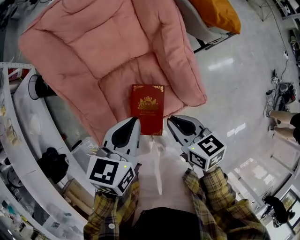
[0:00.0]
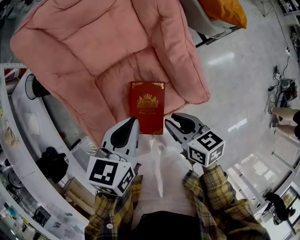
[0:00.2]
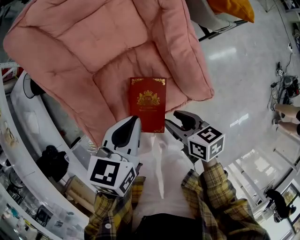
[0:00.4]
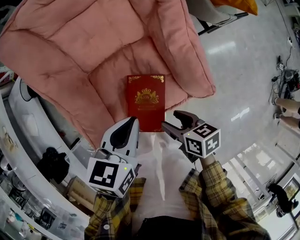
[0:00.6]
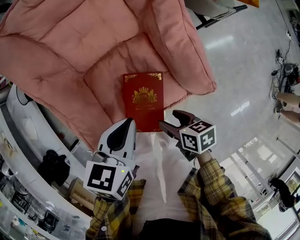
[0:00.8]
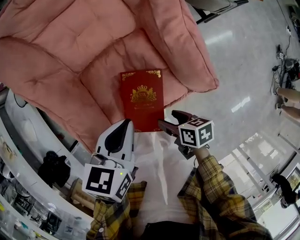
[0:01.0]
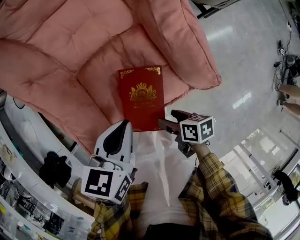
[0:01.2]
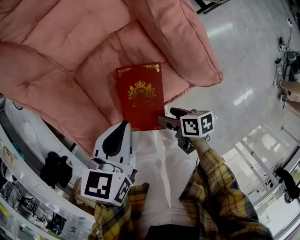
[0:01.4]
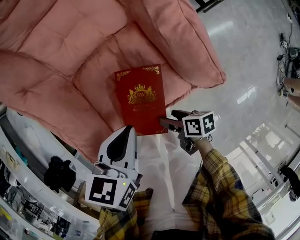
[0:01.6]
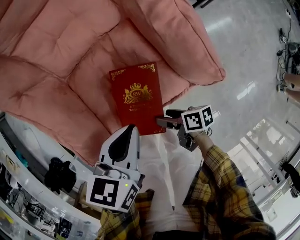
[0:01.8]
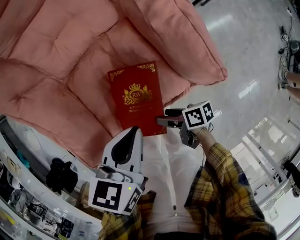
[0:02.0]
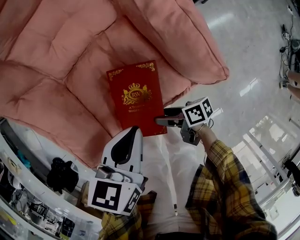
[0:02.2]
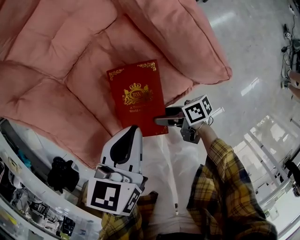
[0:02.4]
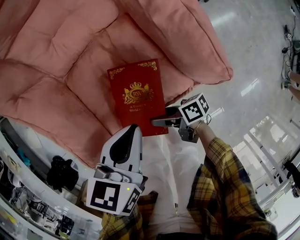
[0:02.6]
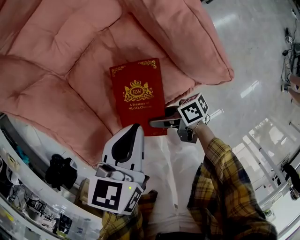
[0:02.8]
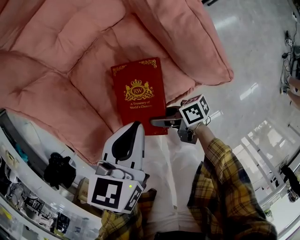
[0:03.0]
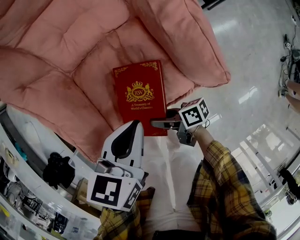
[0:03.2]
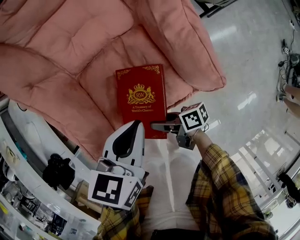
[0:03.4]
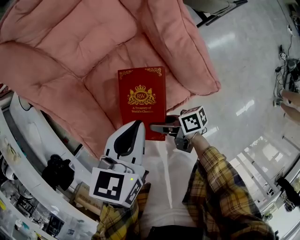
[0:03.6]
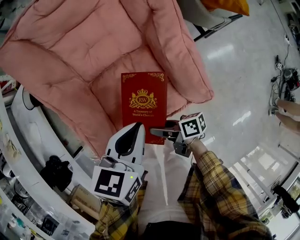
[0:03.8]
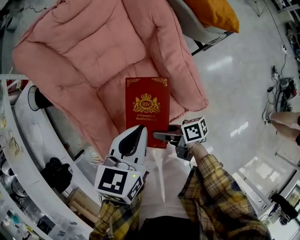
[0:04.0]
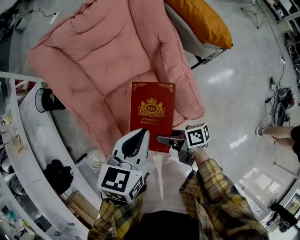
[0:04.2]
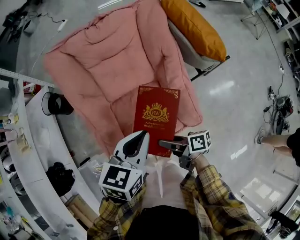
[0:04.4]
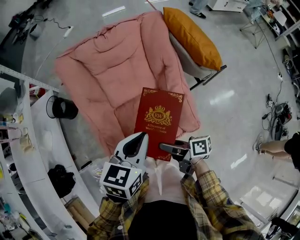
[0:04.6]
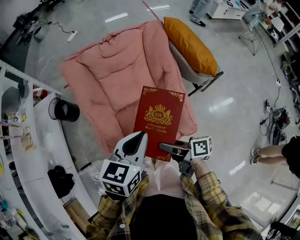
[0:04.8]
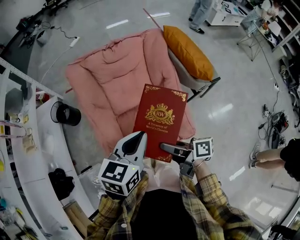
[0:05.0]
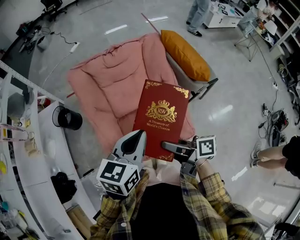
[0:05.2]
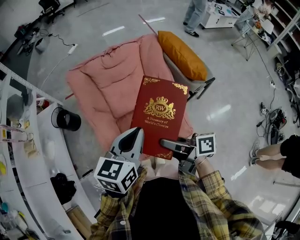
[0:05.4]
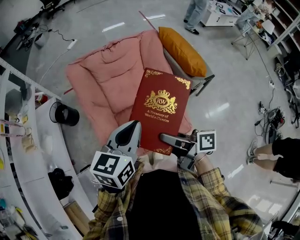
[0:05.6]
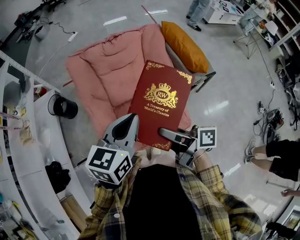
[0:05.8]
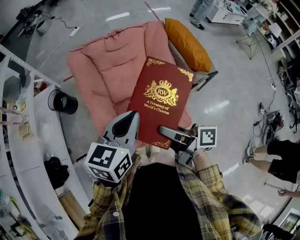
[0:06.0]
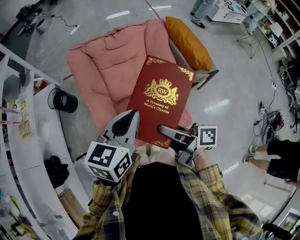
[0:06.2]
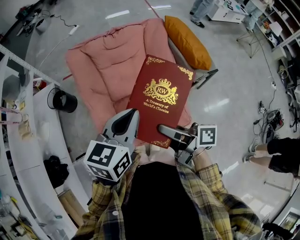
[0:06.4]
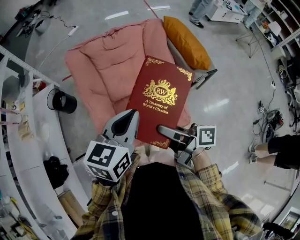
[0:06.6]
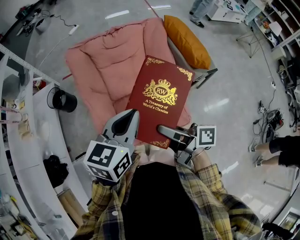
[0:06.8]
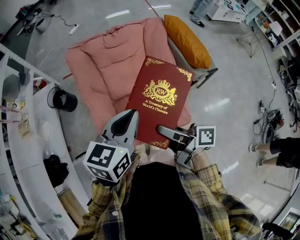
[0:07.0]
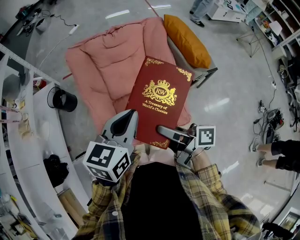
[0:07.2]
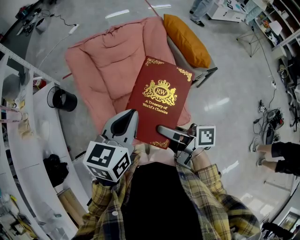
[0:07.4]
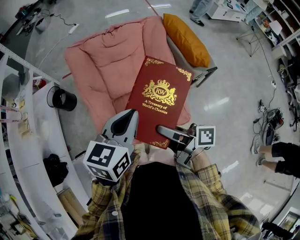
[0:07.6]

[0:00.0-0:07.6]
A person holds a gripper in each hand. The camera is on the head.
0:00.0 to 0:01.6: The left gripper heads downward, covering roughly 15 cm; the right gripper is displaced downward by roughly 30 cm, twists approximately 40 degrees clockwise, seen from behind, and opens up.
0:01.6 to 0:03.0: The right gripper swivels roughly 30 degrees.
0:03.0 to 0:04.6: The two grippers go roughly 30 cm upward.
0:04.6 to 0:06.0: The left gripper goes some 10 cm upward. The right gripper travels upward by approximately 20 cm.
0:06.0 to 0:07.6: Neither gripper changes place.

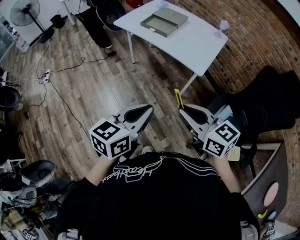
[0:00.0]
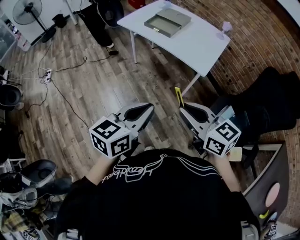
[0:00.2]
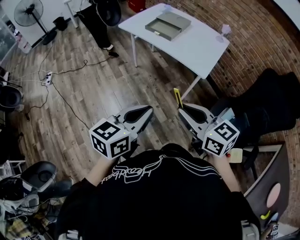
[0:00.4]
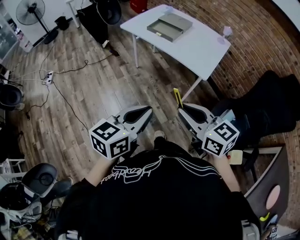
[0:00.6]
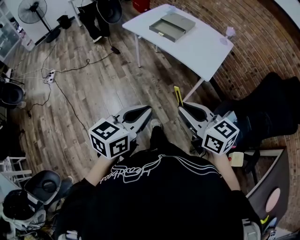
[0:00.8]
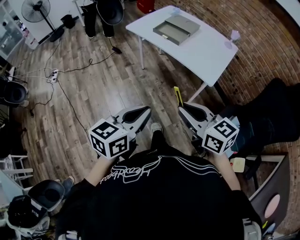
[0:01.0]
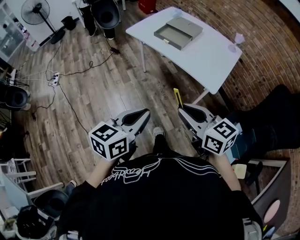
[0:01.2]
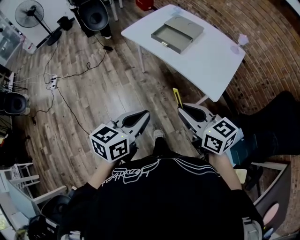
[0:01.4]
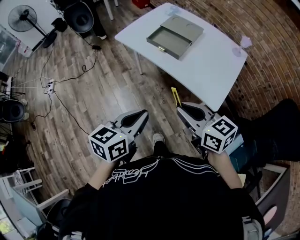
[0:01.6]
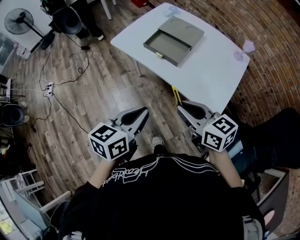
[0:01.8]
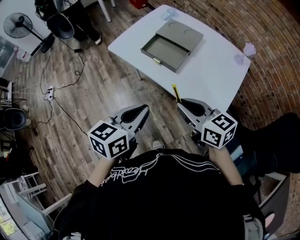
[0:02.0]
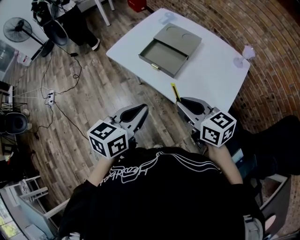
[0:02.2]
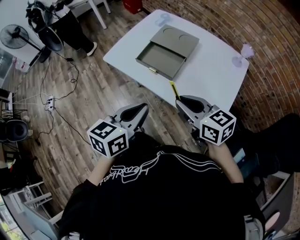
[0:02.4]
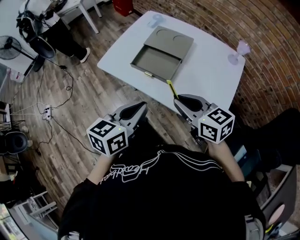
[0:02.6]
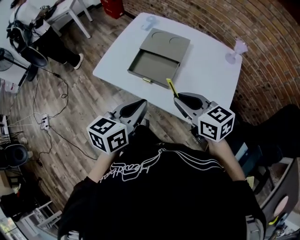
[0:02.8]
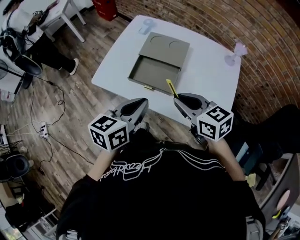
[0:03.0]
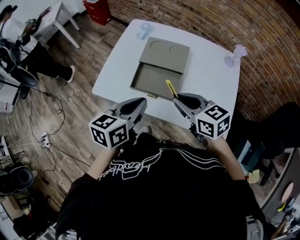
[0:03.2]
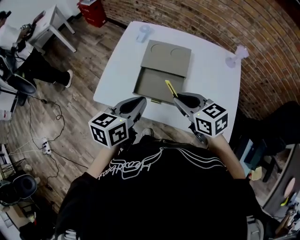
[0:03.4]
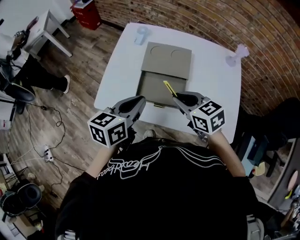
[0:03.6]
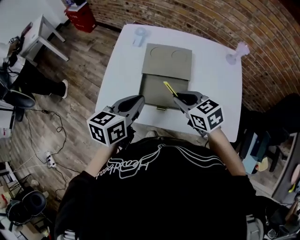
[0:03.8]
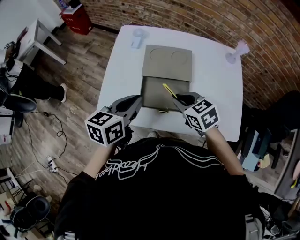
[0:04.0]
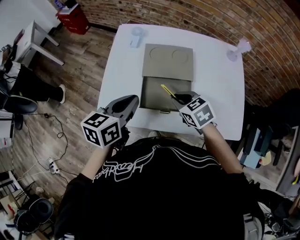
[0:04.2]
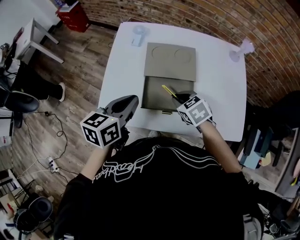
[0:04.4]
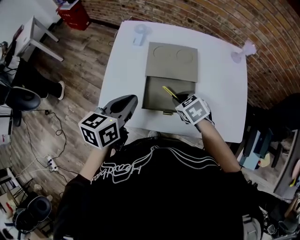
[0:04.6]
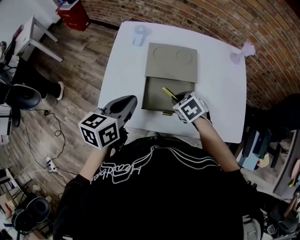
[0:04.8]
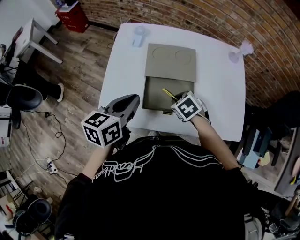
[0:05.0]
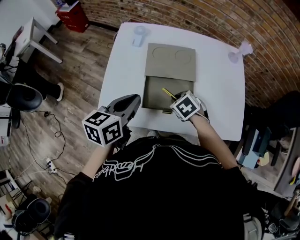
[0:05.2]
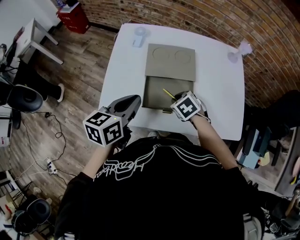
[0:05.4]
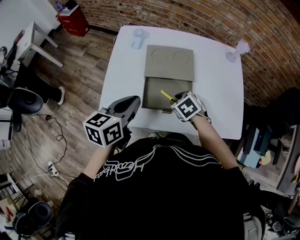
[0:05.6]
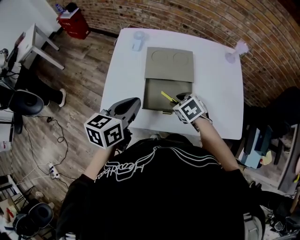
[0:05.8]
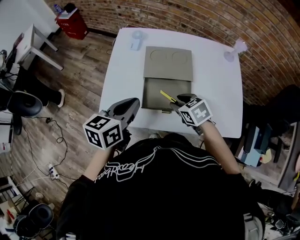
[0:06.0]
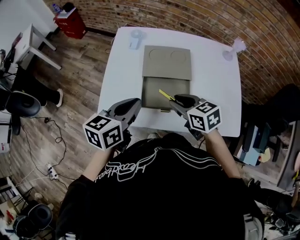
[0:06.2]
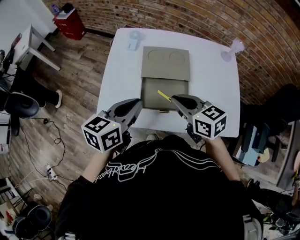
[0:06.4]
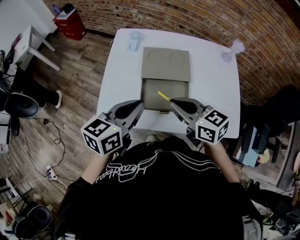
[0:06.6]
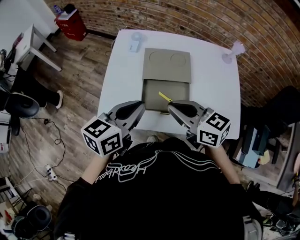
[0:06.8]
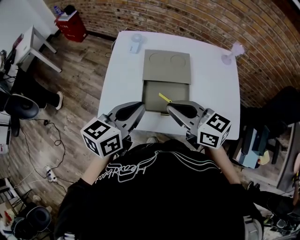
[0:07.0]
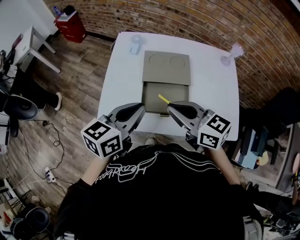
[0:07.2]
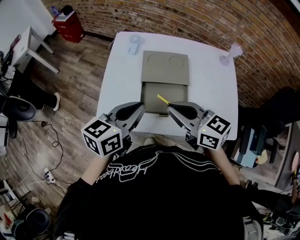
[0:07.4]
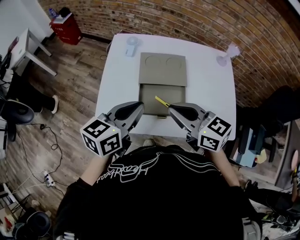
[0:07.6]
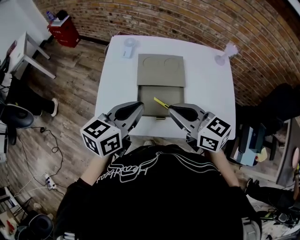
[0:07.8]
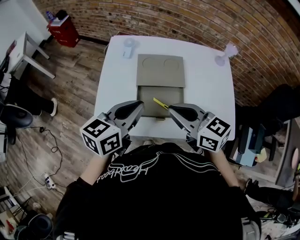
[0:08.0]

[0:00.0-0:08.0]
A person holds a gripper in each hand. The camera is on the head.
0:00.0 to 0:01.6: Both grippers travel together forward, roughly 25 cm.
0:01.6 to 0:03.2: The two grippers go approximately 30 cm forward.
0:03.2 to 0:04.8: The left gripper heads forward and to the left, covering some 15 cm. Meanwhile the right gripper heads downward and forward, covering about 20 cm, and points its fingers approximately 40 degrees further downward.
0:04.8 to 0:06.4: The right gripper travels upward by approximately 15 cm, tips its fingers upward by roughly 40 degrees, and opens and closes again. Meanwhile the left gripper shifts by about 5 cm.
0:06.4 to 0:08.0: The right gripper heads upward, covering about 5 cm.

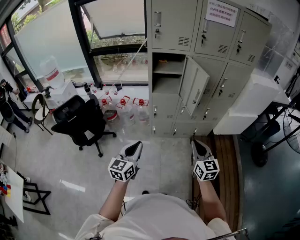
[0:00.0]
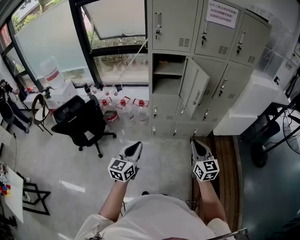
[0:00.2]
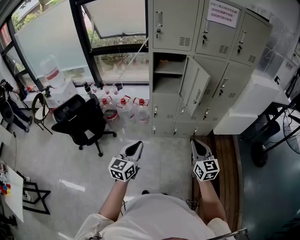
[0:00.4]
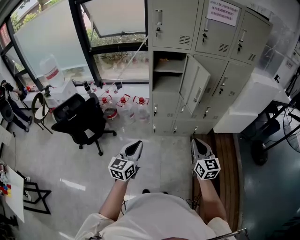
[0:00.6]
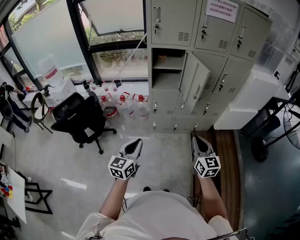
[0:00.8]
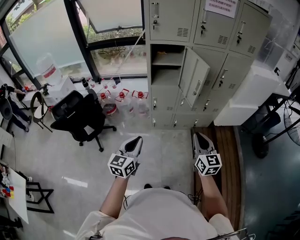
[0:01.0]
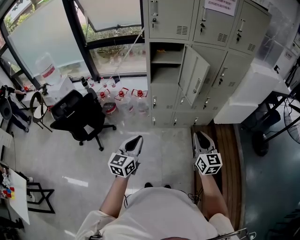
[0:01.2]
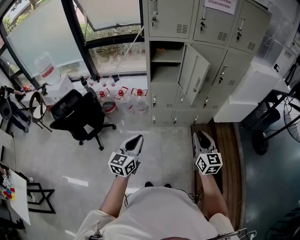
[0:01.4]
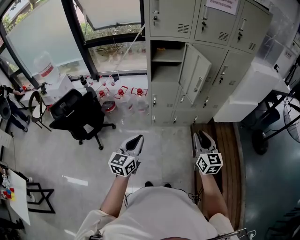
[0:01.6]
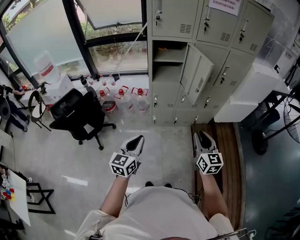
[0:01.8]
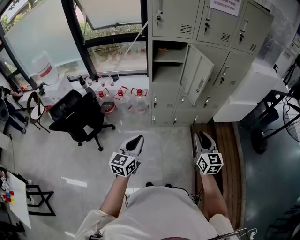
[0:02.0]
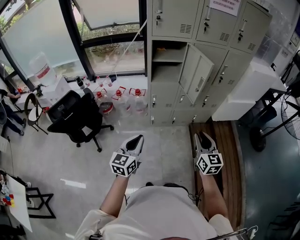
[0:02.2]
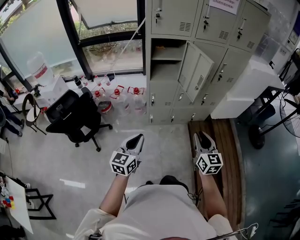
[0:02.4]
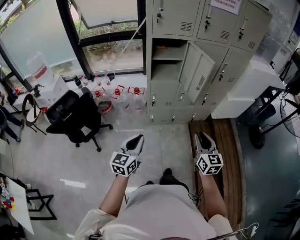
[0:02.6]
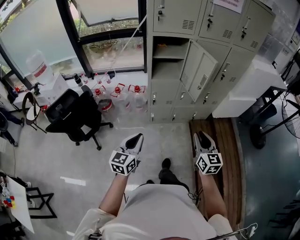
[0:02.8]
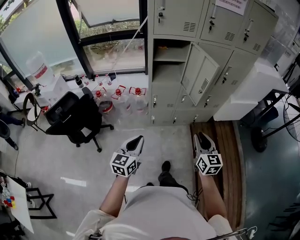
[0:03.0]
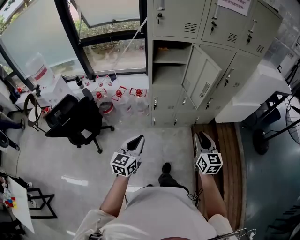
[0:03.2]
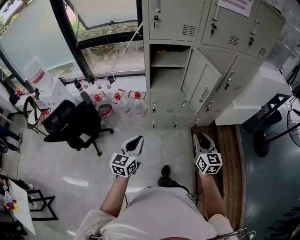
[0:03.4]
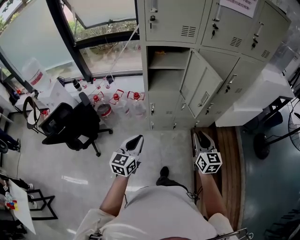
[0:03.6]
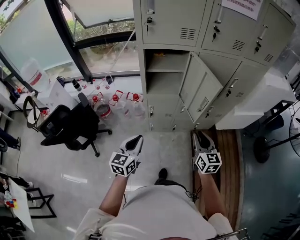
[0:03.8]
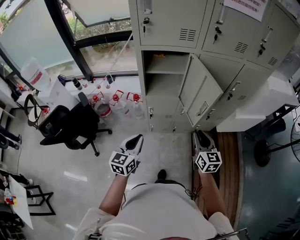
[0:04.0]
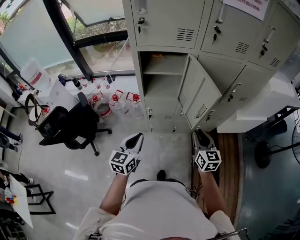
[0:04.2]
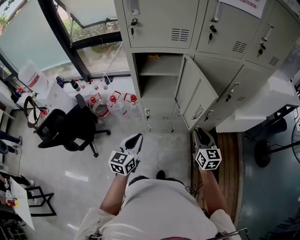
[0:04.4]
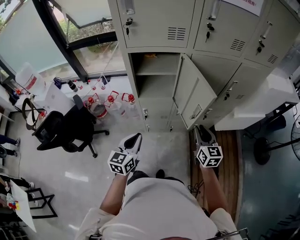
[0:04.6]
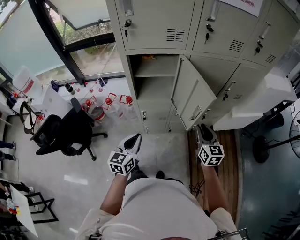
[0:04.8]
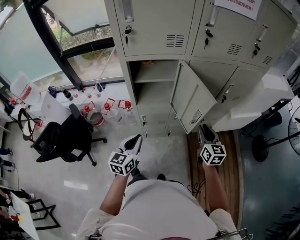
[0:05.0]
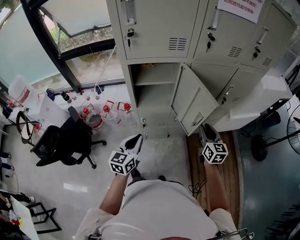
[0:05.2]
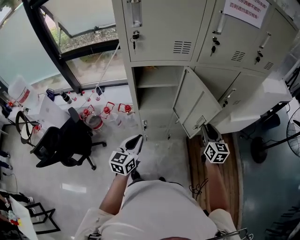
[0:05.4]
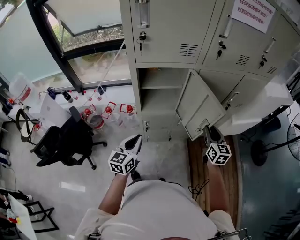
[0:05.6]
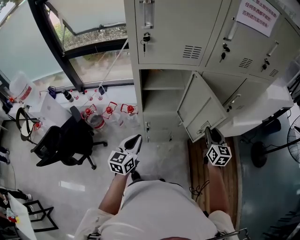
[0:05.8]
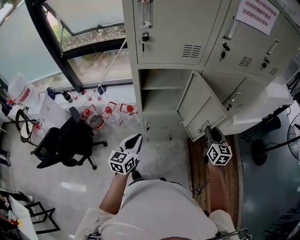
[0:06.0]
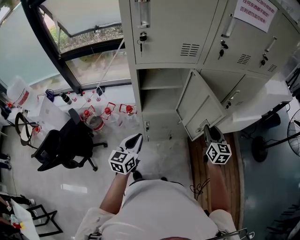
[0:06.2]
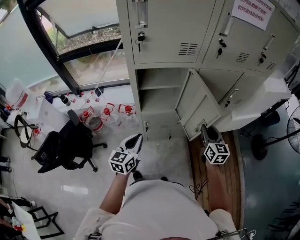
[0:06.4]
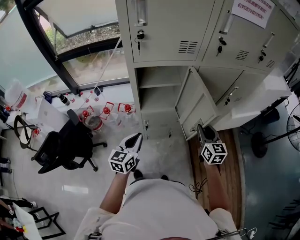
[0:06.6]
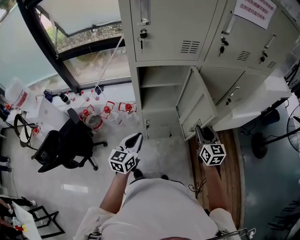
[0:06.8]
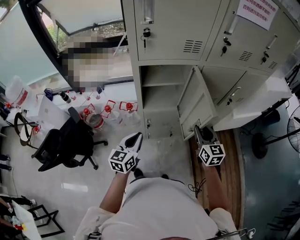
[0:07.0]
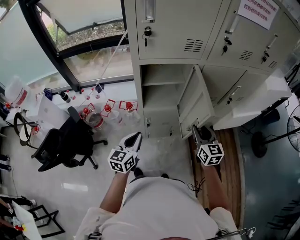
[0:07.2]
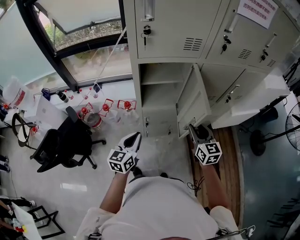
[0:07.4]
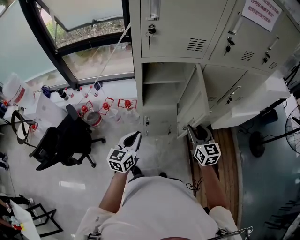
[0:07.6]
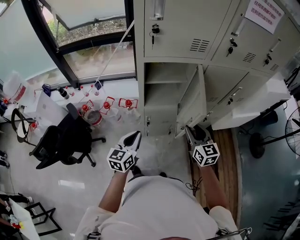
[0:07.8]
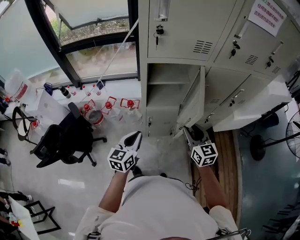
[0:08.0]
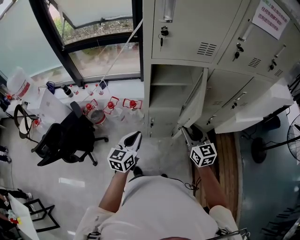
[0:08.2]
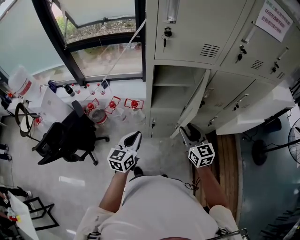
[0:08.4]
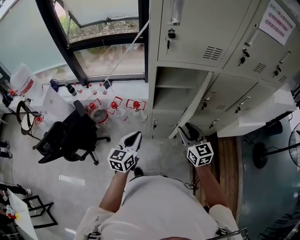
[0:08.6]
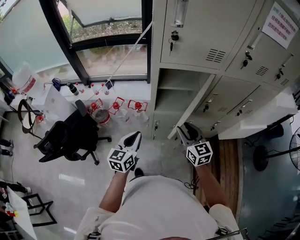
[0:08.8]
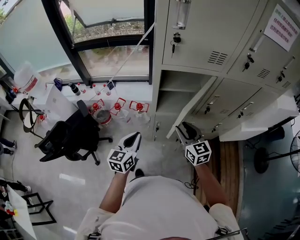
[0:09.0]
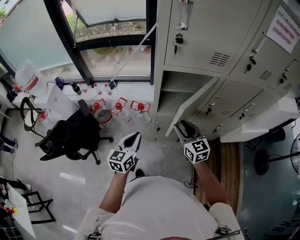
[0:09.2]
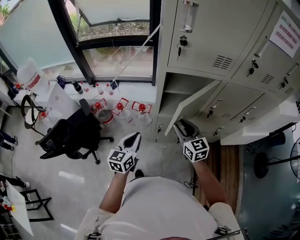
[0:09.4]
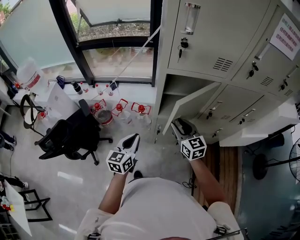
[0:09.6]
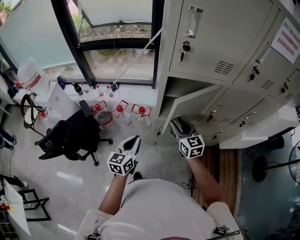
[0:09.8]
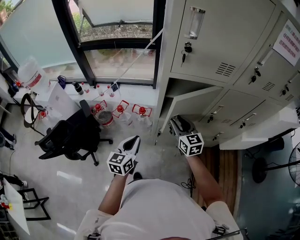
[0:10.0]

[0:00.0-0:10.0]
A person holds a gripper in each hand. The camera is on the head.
0:00.0 to 0:01.4: The grippers make only small movements.
0:01.4 to 0:02.8: The left gripper is displaced to the left by about 5 cm. Meanwhile the right gripper shifts by about 5 cm.
0:02.8 to 0:04.2: The grippers both shift forward by about 25 cm.
0:04.2 to 0:05.8: The left gripper goes approximately 10 cm forward and to the left; the right gripper moves forward, approximately 10 cm.
0:05.8 to 0:07.2: The right gripper moves to the left, some 10 cm.
0:07.2 to 0:08.6: The right gripper heads to the left, covering approximately 10 cm. The left gripper travels to the left by about 5 cm.
0:08.6 to 0:10.0: The right gripper goes approximately 10 cm forward and to the left.
